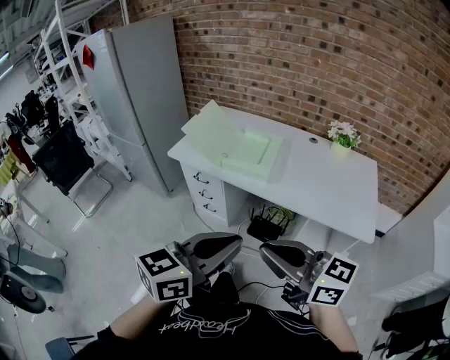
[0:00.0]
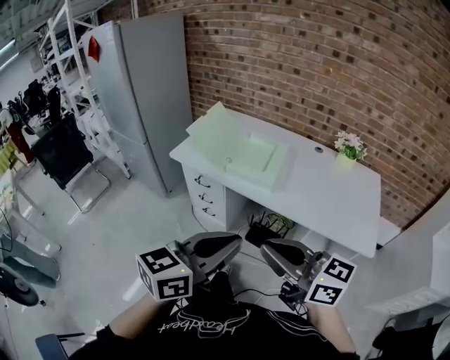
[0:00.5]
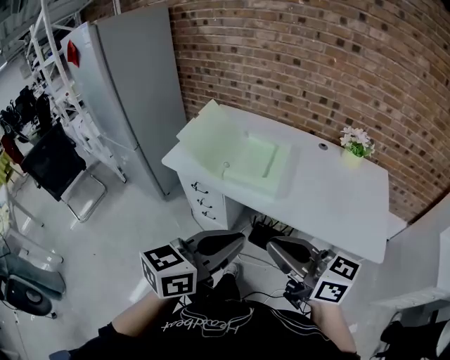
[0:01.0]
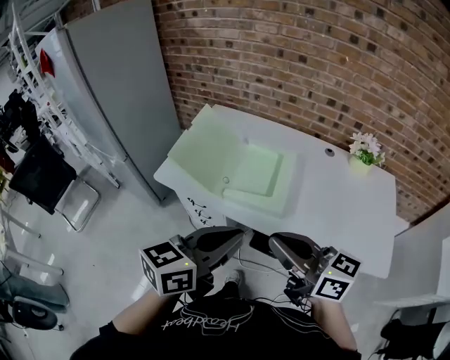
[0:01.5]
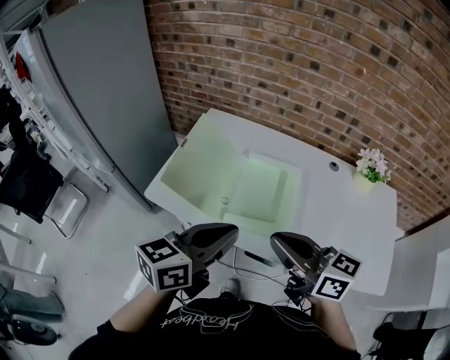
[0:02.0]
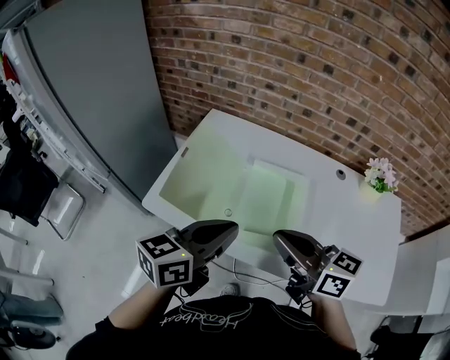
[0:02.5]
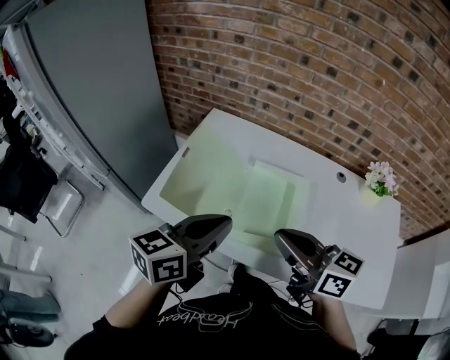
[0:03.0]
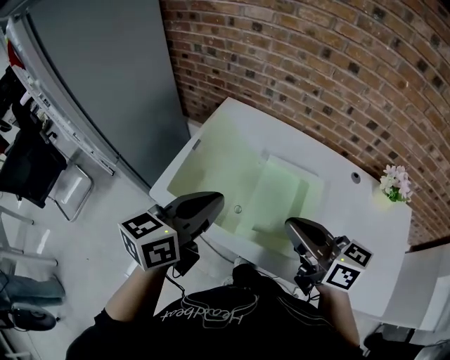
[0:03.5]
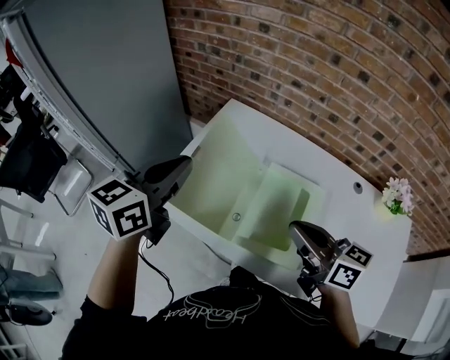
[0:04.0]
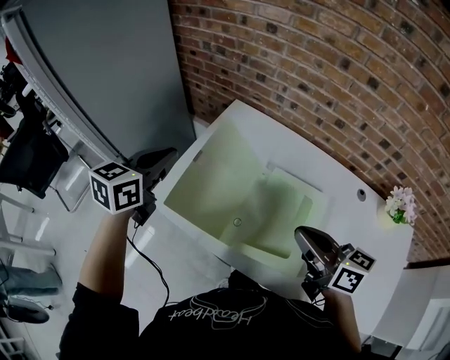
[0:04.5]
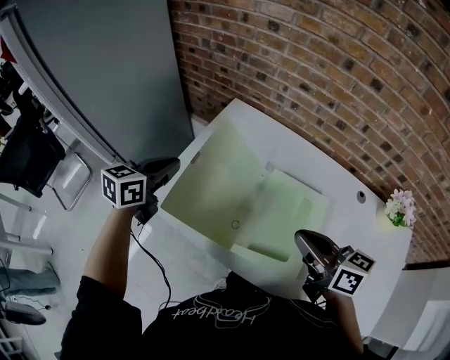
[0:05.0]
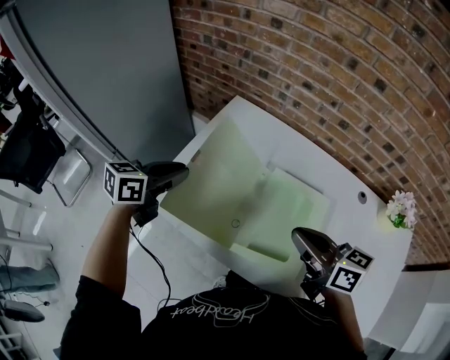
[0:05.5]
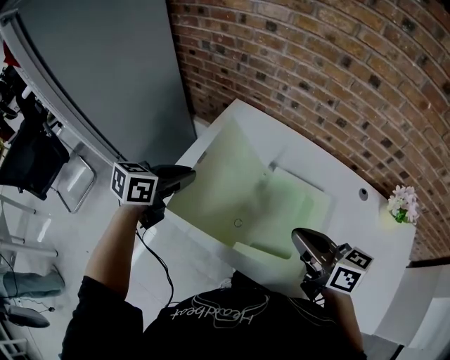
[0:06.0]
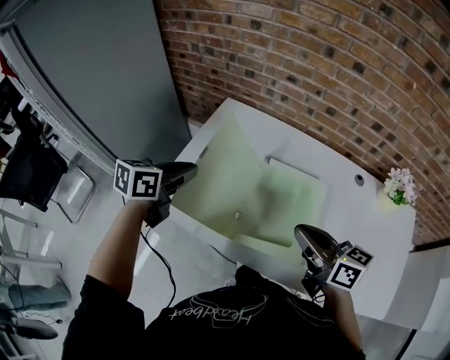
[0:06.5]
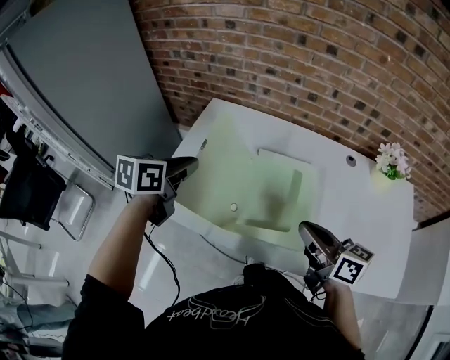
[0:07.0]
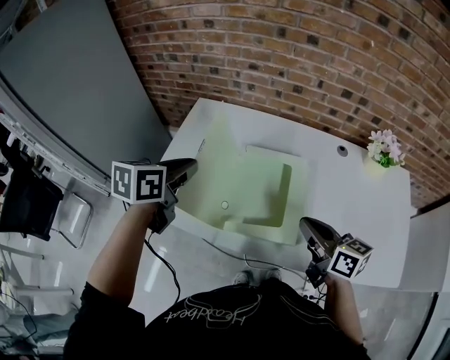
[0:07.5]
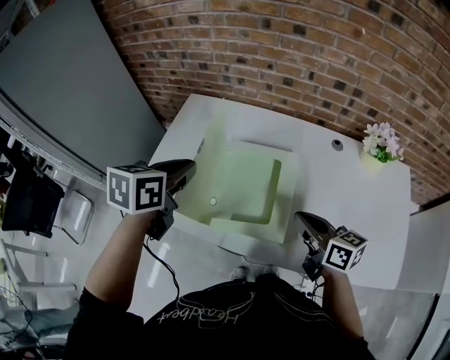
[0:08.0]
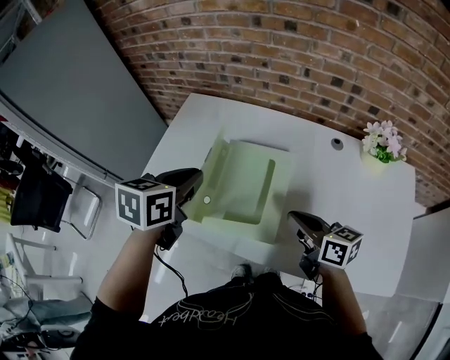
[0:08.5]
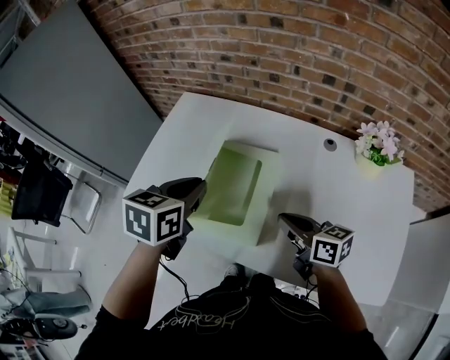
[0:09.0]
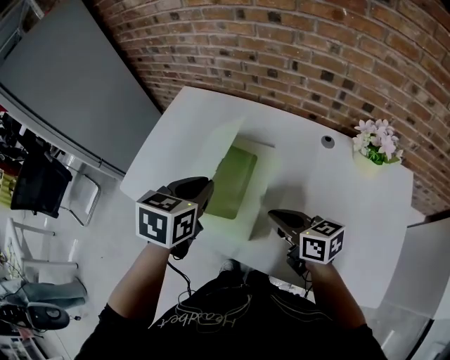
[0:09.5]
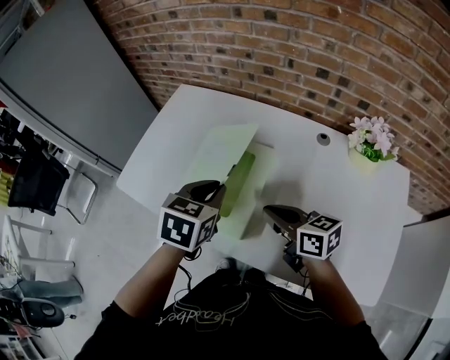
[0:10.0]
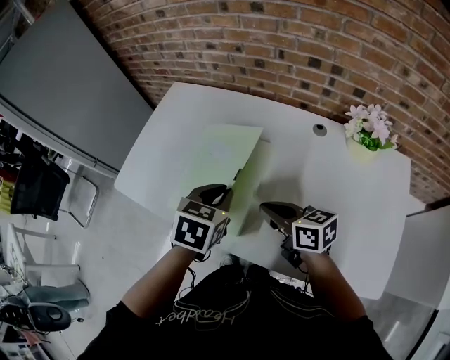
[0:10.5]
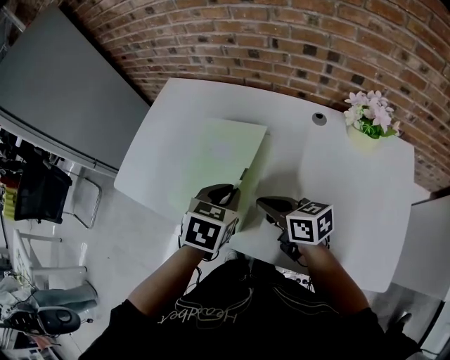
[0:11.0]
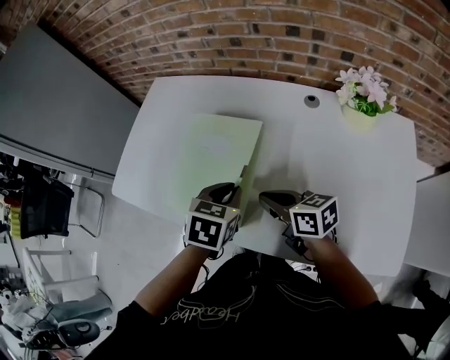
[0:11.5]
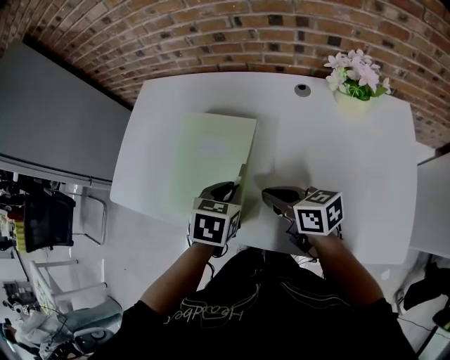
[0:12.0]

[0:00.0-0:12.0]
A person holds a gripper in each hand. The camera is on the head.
0:00.0 to 0:02.0: Both grippers travel together forward, some 40 cm.
0:02.0 to 0:04.0: The left gripper is displaced forward and to the left by approximately 25 cm, and rotates roughly 20 degrees. Meanwhile the right gripper is displaced forward by roughly 15 cm.
0:04.0 to 0:06.0: The left gripper goes some 15 cm downward, and swivels about 20 degrees.
0:06.0 to 0:08.0: The left gripper is displaced to the right and upward by about 15 cm; the right gripper goes approximately 15 cm to the right, downward and backward.
0:08.0 to 0:10.0: The left gripper goes some 20 cm to the right, backward and downward.
0:10.0 to 0:12.0: The right gripper travels downward by about 5 cm, while the left gripper shifts roughly 15 cm downward and to the right.

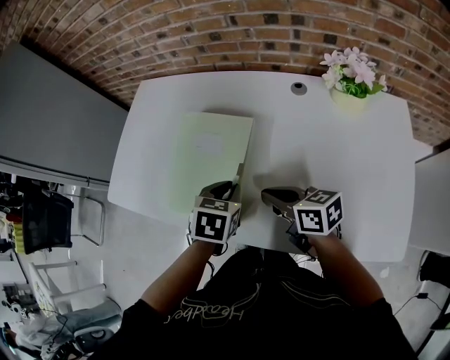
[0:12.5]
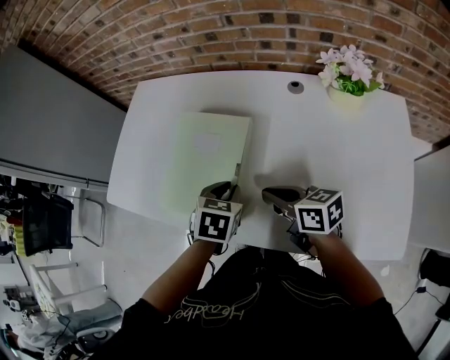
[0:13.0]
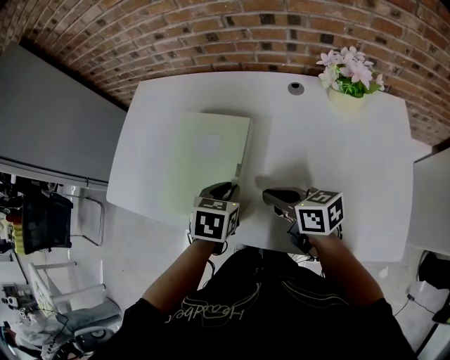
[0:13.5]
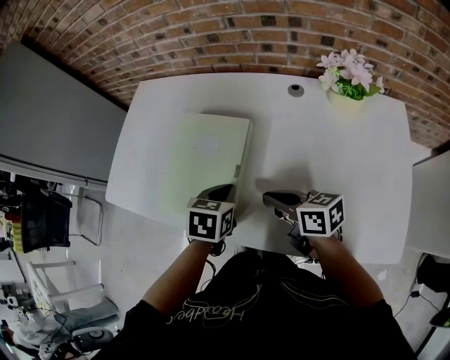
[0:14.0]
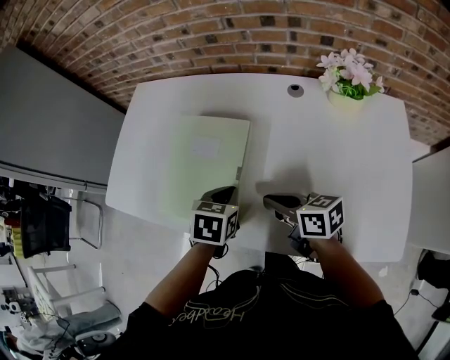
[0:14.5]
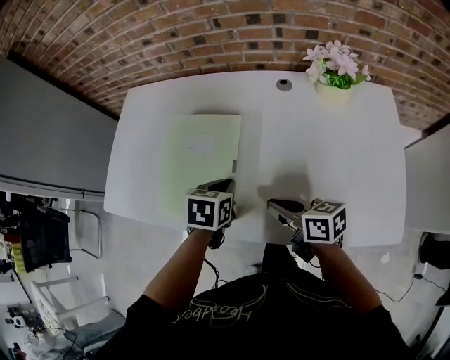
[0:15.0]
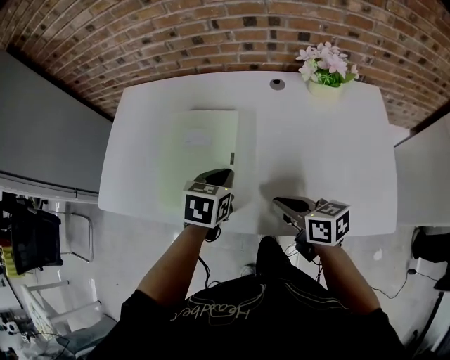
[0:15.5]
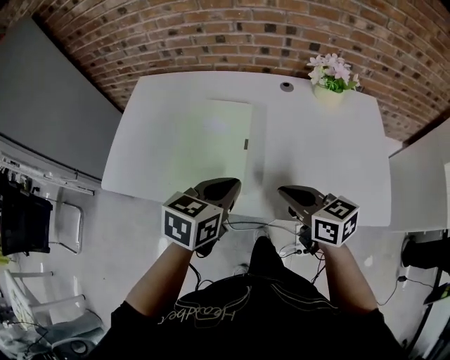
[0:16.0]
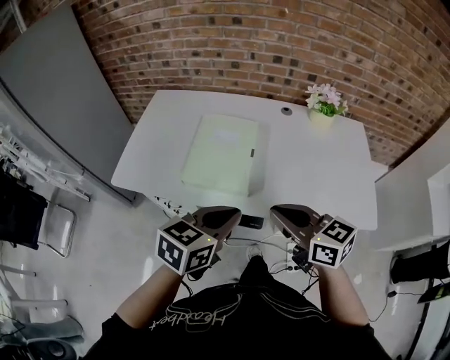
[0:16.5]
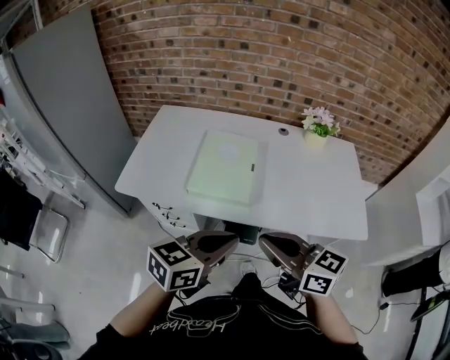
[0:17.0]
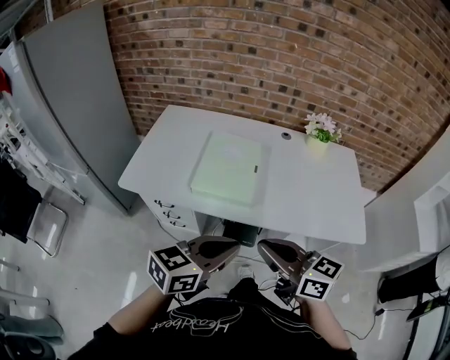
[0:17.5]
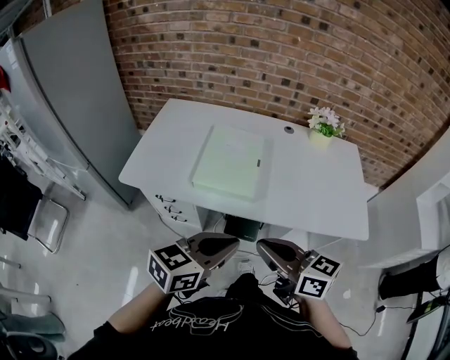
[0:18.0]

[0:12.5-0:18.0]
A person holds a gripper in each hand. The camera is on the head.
0:12.5 to 0:14.5: The grippers stay close to where they were, moving slightly.
0:14.5 to 0:16.0: The left gripper shifts some 15 cm upward and backward, and rotates roughly 30 degrees. Meanwhile the right gripper heads backward and upward, covering approximately 10 cm, and swivels roughly 20 degrees.
0:16.0 to 0:18.0: The right gripper travels backward, upward and to the left by about 25 cm; the left gripper heads backward, covering some 20 cm, and changes its angle by about 20 degrees.

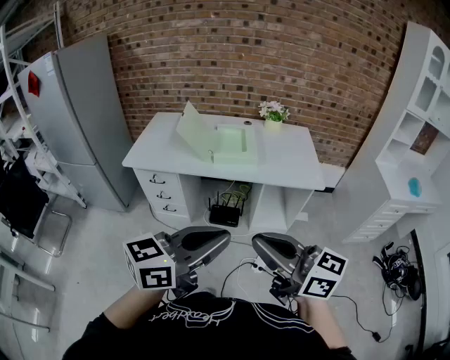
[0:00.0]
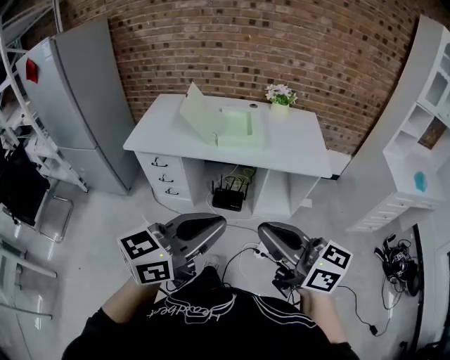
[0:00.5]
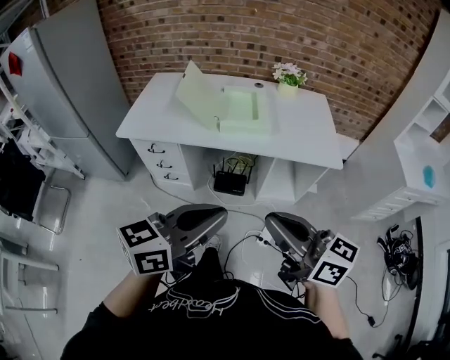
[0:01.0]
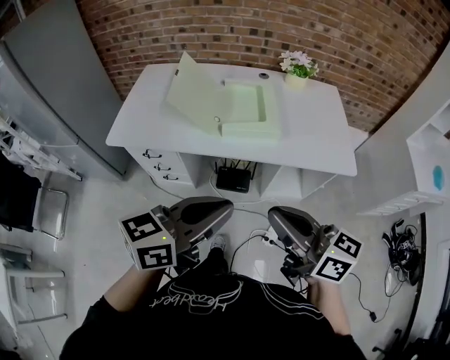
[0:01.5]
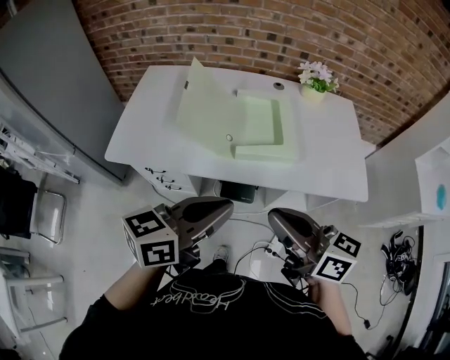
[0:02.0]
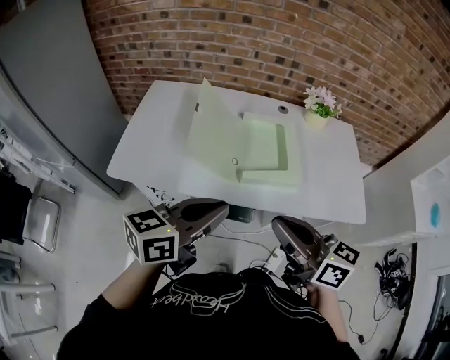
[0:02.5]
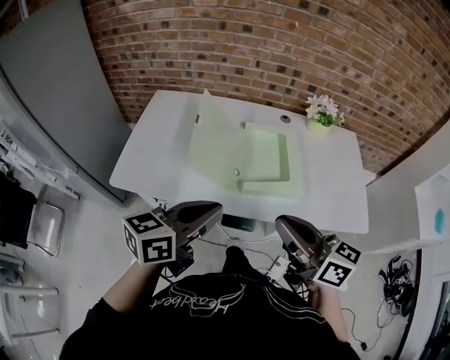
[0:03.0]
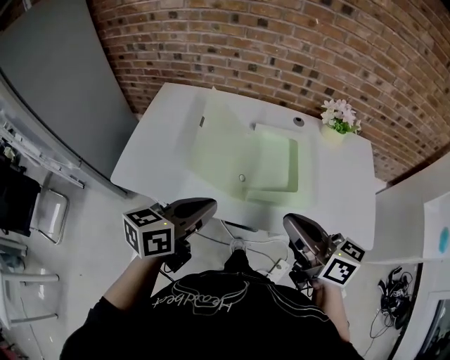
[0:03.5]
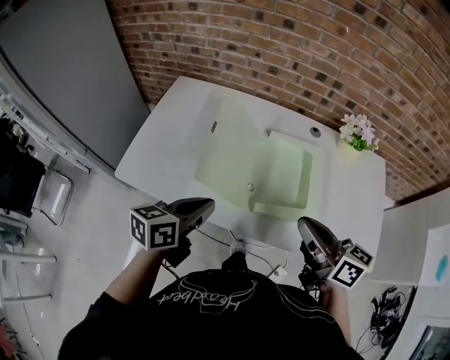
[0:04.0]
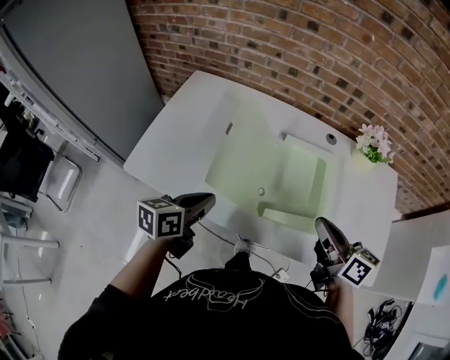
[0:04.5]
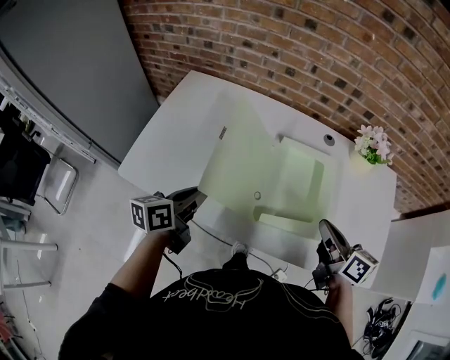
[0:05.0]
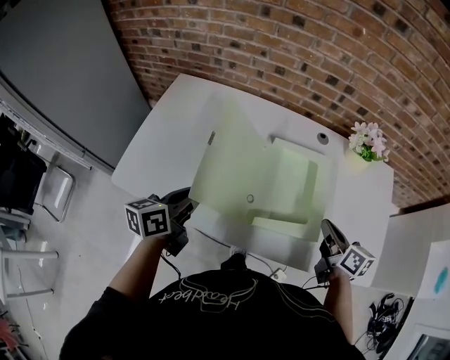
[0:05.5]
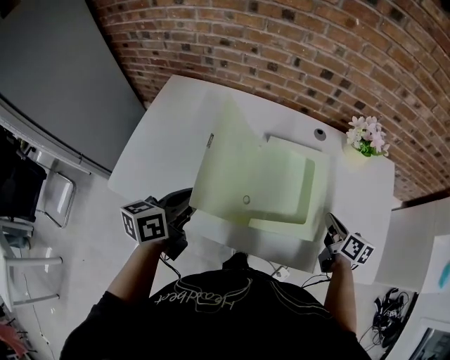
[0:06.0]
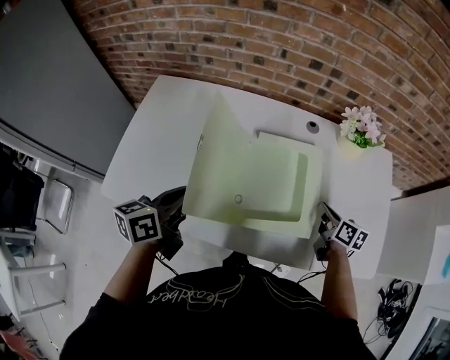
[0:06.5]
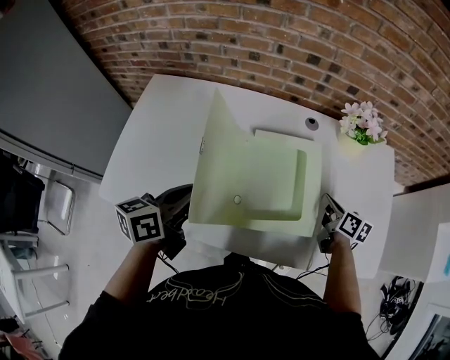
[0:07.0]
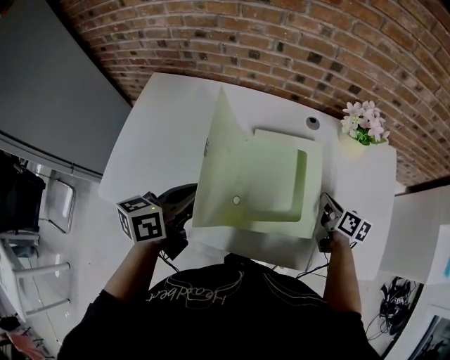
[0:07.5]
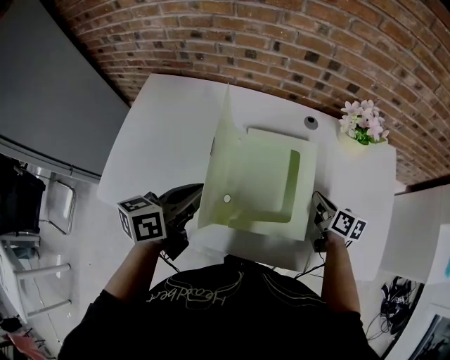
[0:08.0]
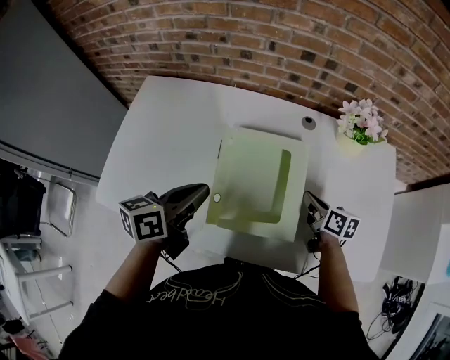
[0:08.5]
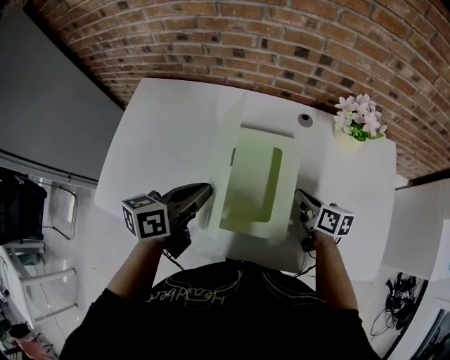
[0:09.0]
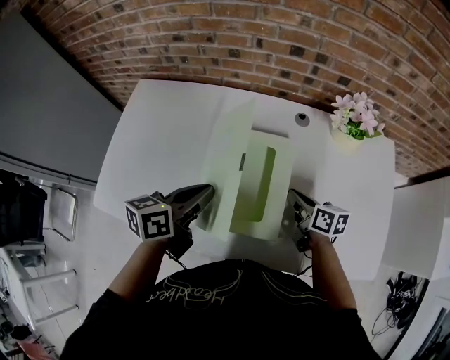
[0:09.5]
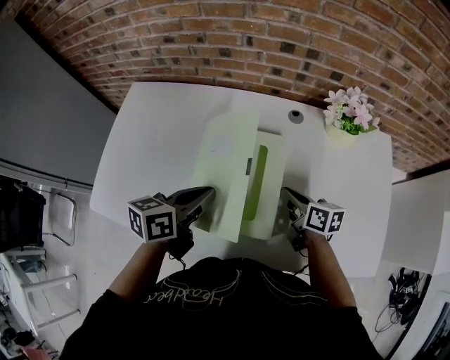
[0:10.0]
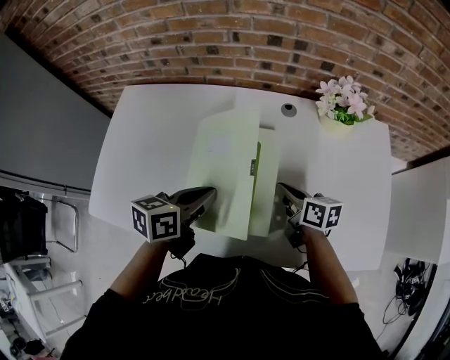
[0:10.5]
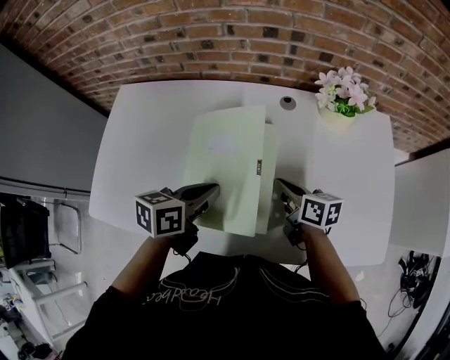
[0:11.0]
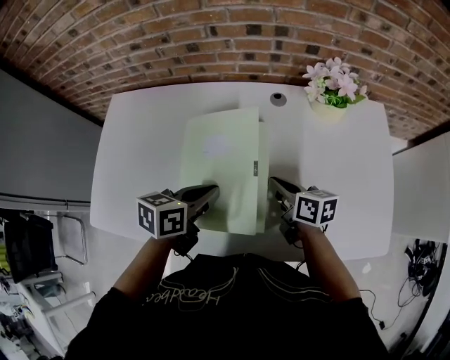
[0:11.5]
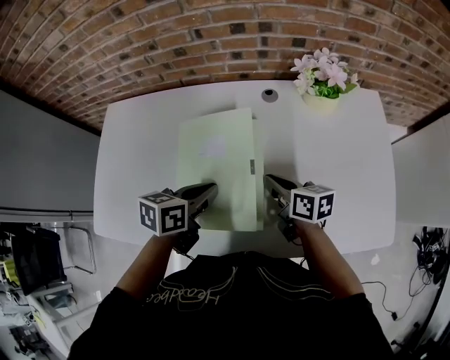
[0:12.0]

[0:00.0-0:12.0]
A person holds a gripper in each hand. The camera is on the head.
0:00.0 to 0:02.0: The two grippers go some 35 cm forward.
0:02.0 to 0:04.0: The right gripper heads forward, covering about 20 cm, while the left gripper heads forward, to the left and downward, covering about 25 cm, and turns by about 20 degrees.
0:04.0 to 0:06.0: The left gripper moves forward, roughly 10 cm. Meanwhile the right gripper goes about 30 cm downward, to the right and forward, and rotates about 30 degrees.
0:06.0 to 0:08.0: The right gripper moves forward, about 5 cm; the left gripper goes some 5 cm to the right.
0:08.0 to 0:10.0: The left gripper travels to the right by about 5 cm; the right gripper goes approximately 5 cm to the left.
0:10.0 to 0:12.0: The left gripper shifts approximately 5 cm downward.
